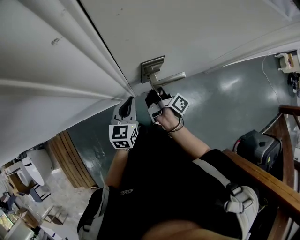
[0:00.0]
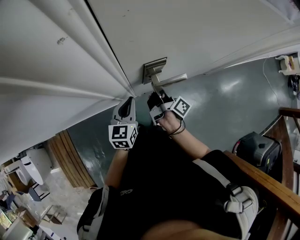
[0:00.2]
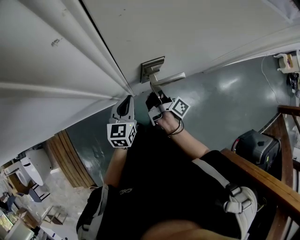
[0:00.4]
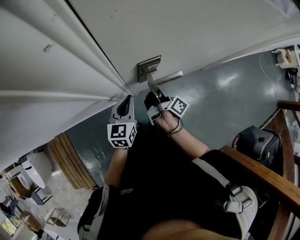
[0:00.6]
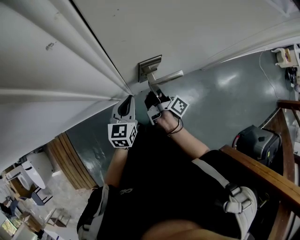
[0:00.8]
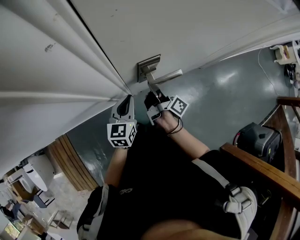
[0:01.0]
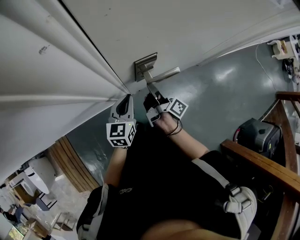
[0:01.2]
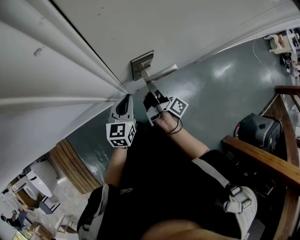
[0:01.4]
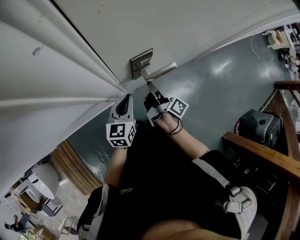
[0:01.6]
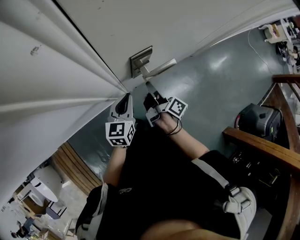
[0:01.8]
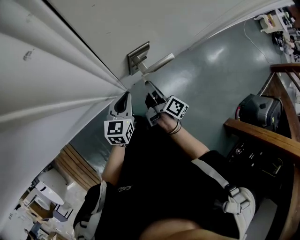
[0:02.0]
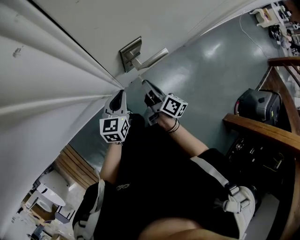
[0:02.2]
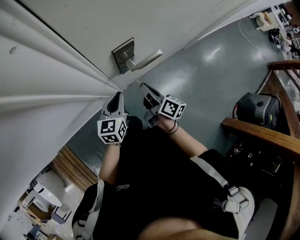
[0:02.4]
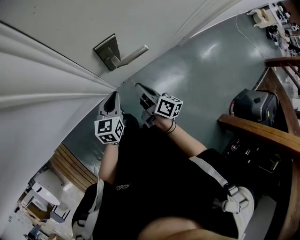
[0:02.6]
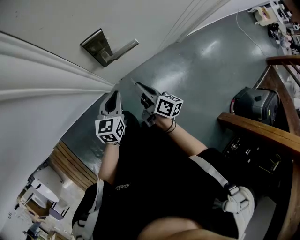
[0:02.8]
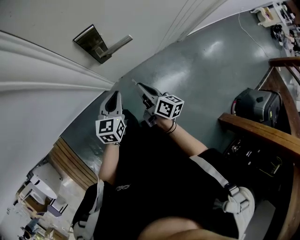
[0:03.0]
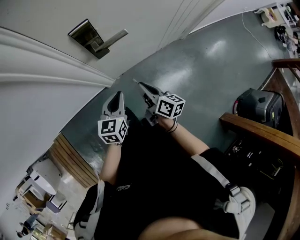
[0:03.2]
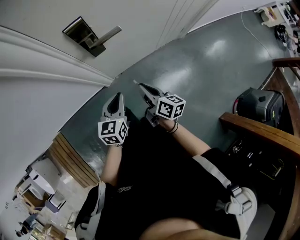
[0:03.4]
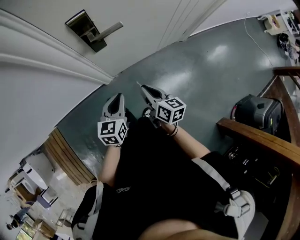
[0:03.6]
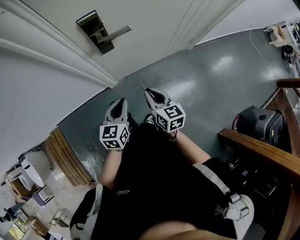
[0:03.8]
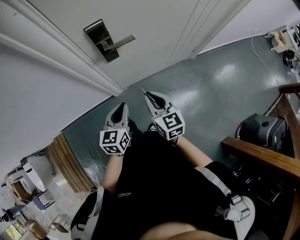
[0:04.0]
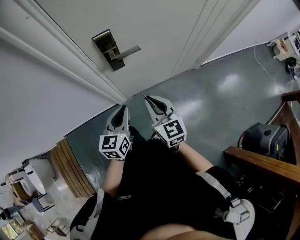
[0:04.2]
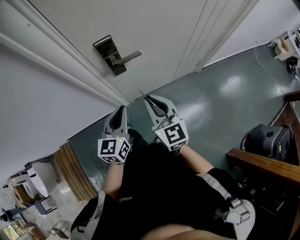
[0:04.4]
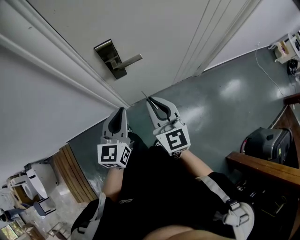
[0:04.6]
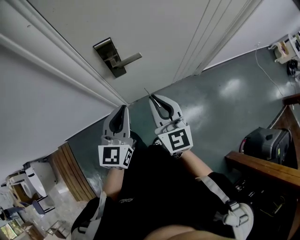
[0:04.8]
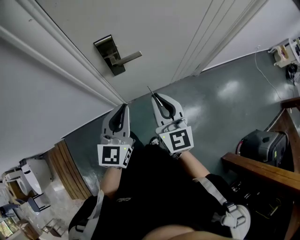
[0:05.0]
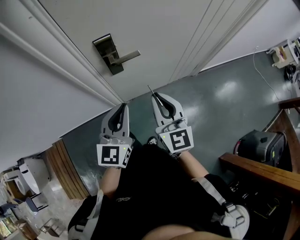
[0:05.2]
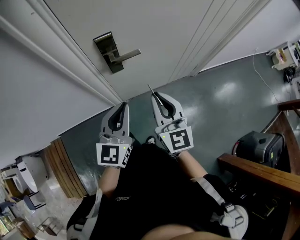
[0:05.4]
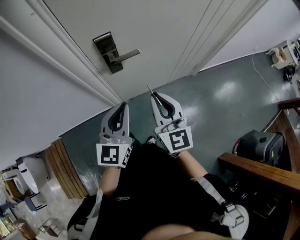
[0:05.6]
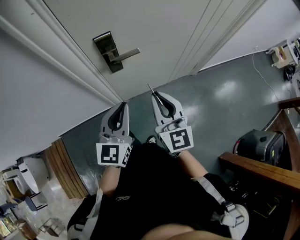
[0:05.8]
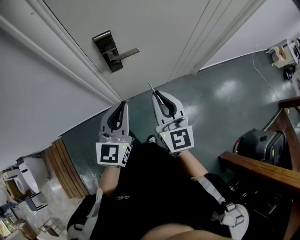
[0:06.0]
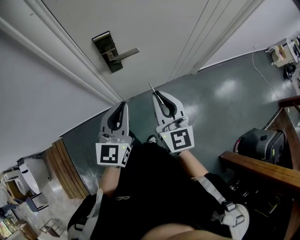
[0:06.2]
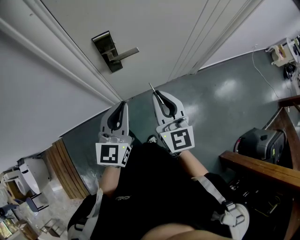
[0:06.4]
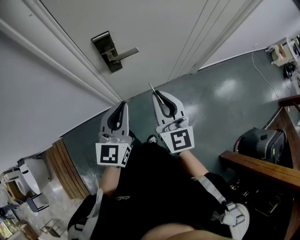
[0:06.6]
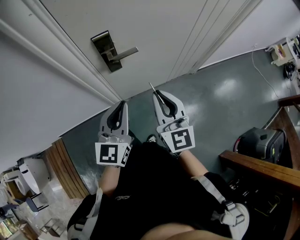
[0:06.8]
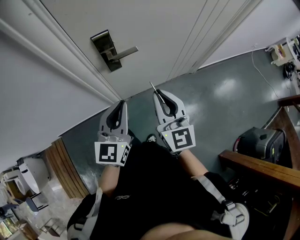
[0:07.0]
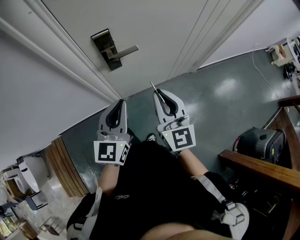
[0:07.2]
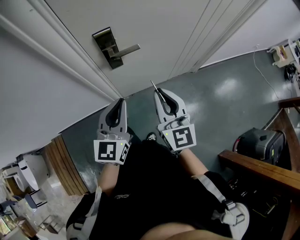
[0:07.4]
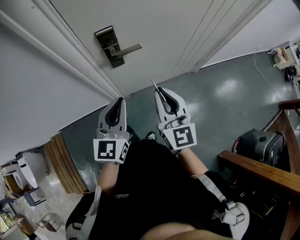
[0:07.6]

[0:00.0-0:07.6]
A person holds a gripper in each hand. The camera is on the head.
0.0 to 1.6 s: The grippers move only a little.
1.6 to 3.0 s: The grippers both shift backward and to the right by roughly 15 cm. The right gripper swivels approximately 30 degrees.
3.0 to 4.6 s: The left gripper goes about 15 cm upward and backward, and rotates roughly 20 degrees; the right gripper moves upward, roughly 15 cm, and rotates around the line of its fingers by approximately 60 degrees, counterclockwise from behind.
4.6 to 6.0 s: The grippers move only a little.
6.0 to 7.6 s: Both grippers stay put.

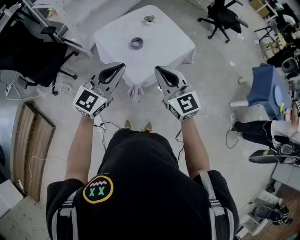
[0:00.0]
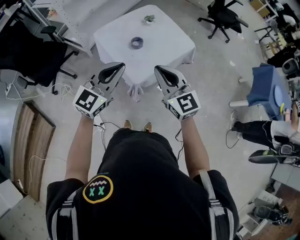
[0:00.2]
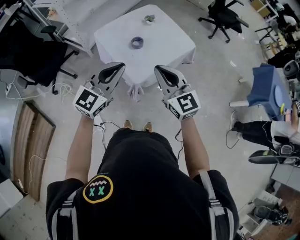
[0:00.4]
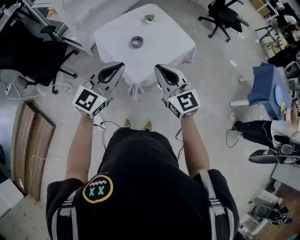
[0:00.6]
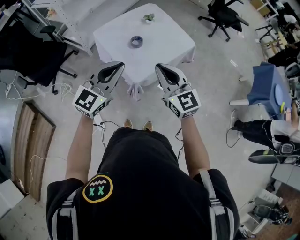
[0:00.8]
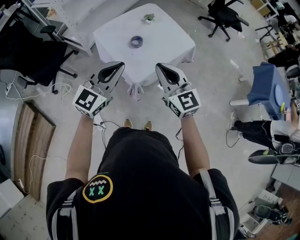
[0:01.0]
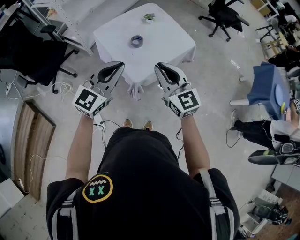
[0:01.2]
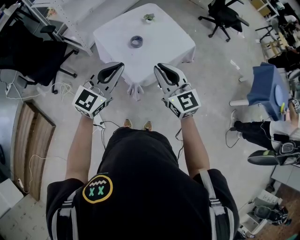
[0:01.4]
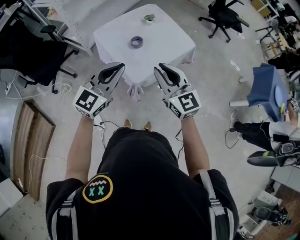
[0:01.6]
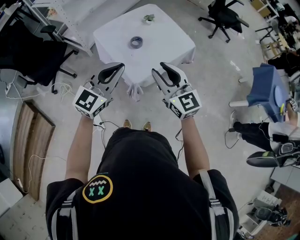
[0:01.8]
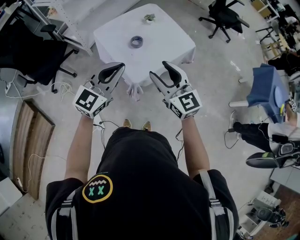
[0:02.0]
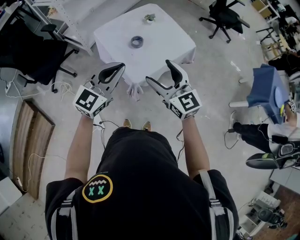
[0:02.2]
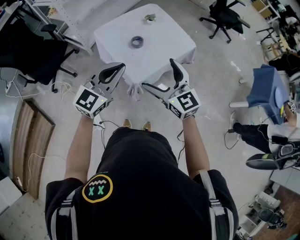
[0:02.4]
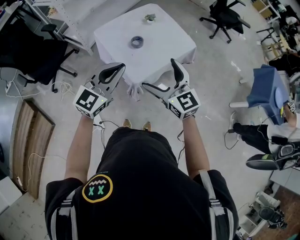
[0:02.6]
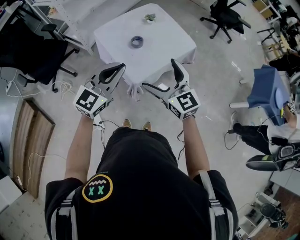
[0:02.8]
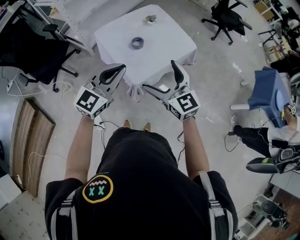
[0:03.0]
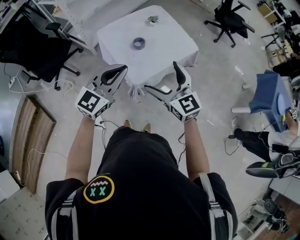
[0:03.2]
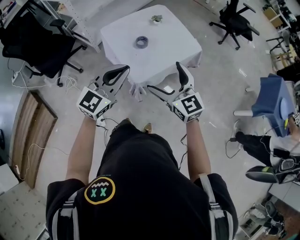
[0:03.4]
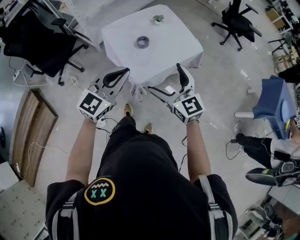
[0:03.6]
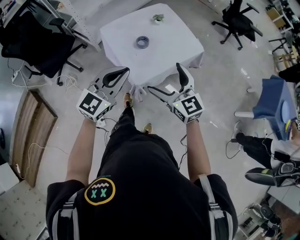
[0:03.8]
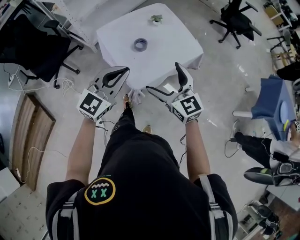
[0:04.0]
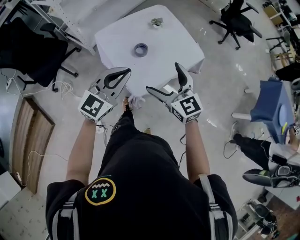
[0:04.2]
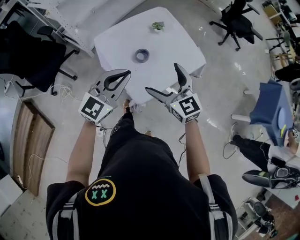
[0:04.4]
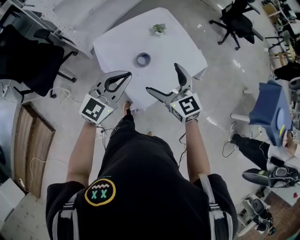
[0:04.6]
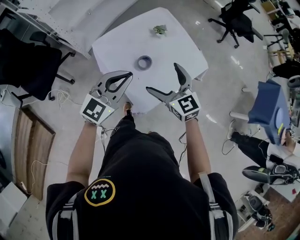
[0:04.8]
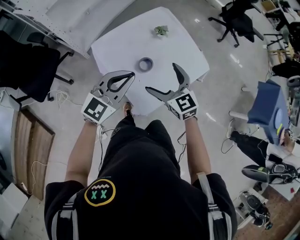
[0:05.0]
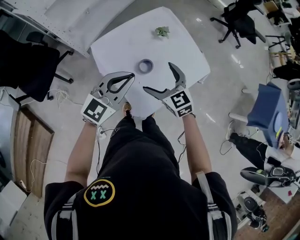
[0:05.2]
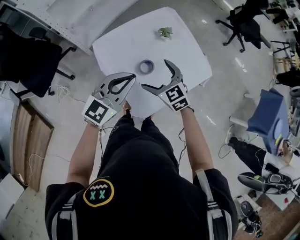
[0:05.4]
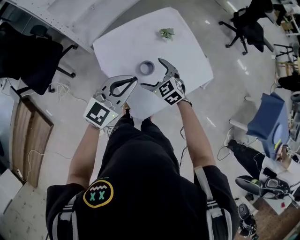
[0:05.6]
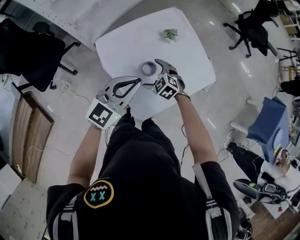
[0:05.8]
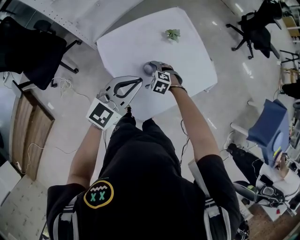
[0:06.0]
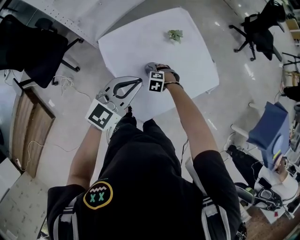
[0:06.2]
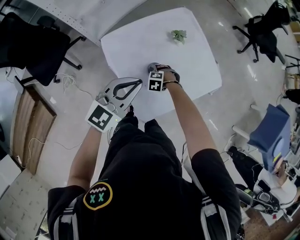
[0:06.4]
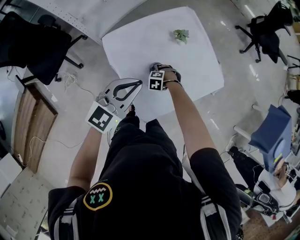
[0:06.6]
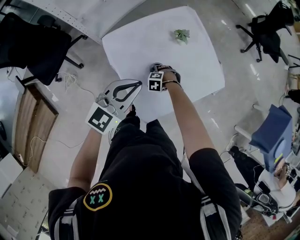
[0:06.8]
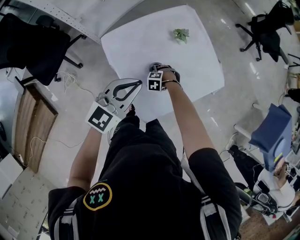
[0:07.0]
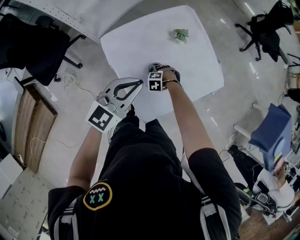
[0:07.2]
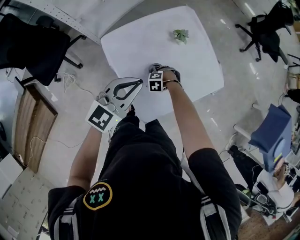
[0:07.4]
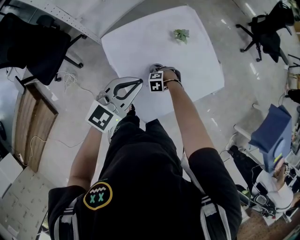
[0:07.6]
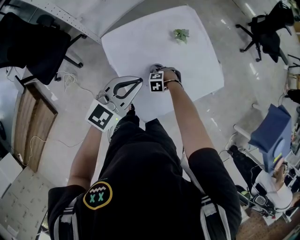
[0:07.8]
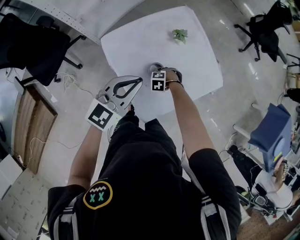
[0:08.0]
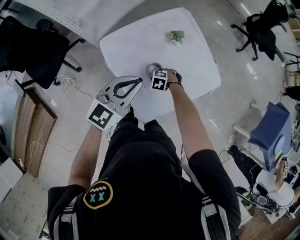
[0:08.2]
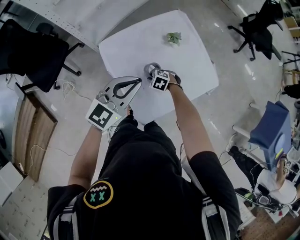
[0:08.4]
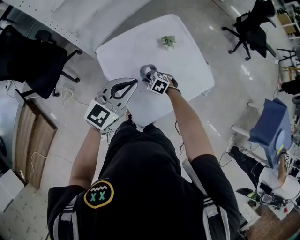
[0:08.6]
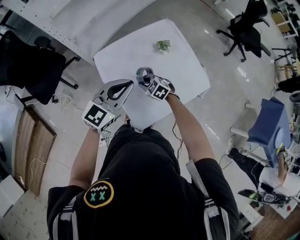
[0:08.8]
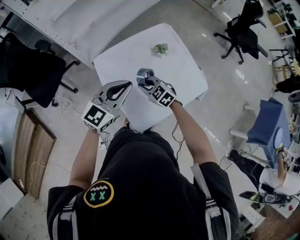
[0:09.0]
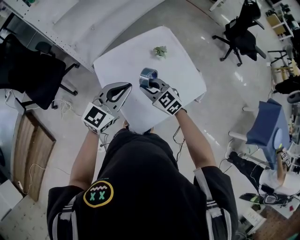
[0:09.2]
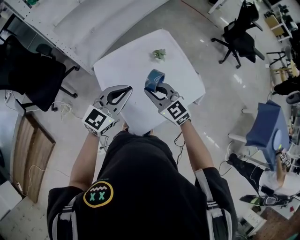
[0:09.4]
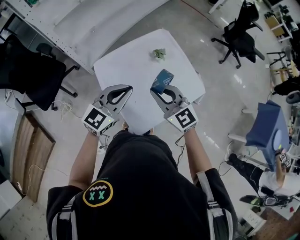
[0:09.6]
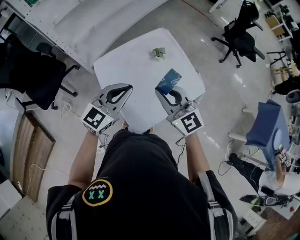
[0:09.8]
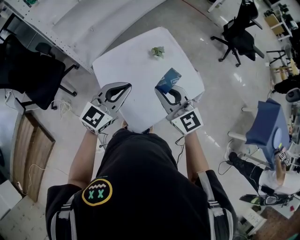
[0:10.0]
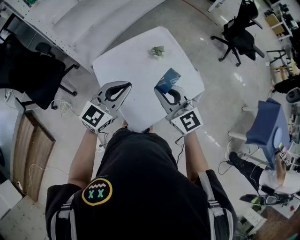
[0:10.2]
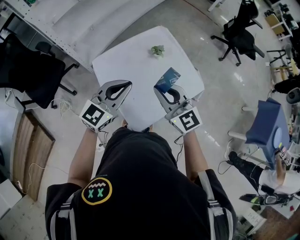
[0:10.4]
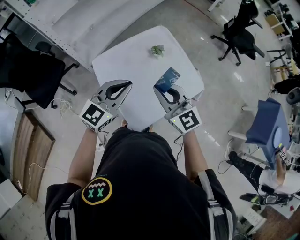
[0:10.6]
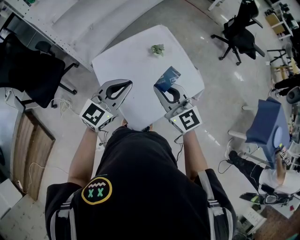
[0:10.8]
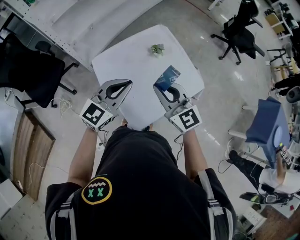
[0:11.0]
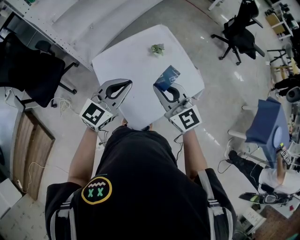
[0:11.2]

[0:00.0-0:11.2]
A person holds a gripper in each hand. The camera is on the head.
0.0 to 1.6 s: Neither gripper changes place.
1.6 to 3.2 s: The right gripper opens.
3.2 to 4.8 s: The grippers both shift forward by some 25 cm.
4.8 to 6.4 s: The right gripper is displaced downward by roughly 35 cm, and angles its fingers downward, by approximately 60 degrees; the left gripper changes place by roughly 10 cm.
6.4 to 8.0 s: The right gripper closes up.
8.0 to 9.6 s: The right gripper heads upward, covering some 40 cm, and tilts its fingers roughly 70 degrees upward.
9.6 to 11.2 s: The grippers stay close to where they were, moving slightly.

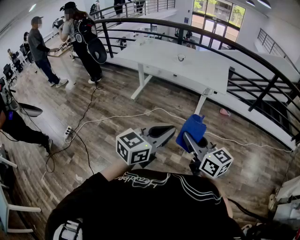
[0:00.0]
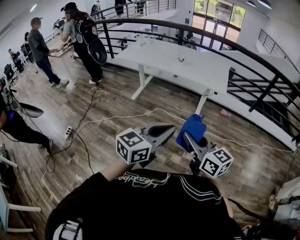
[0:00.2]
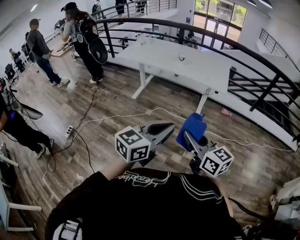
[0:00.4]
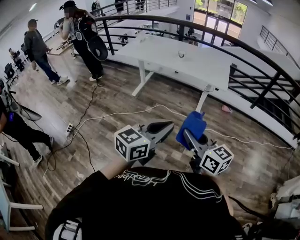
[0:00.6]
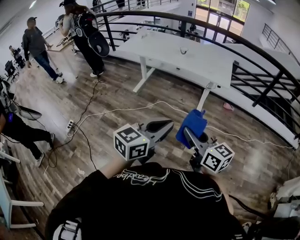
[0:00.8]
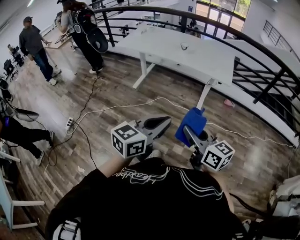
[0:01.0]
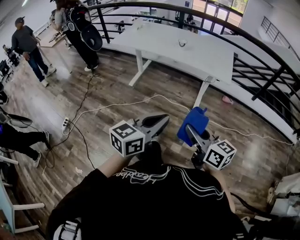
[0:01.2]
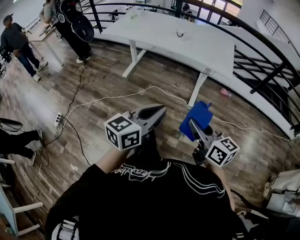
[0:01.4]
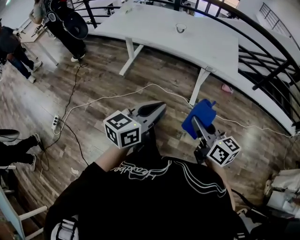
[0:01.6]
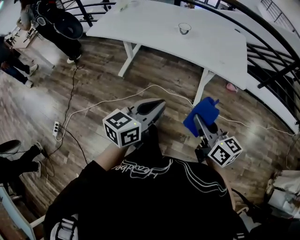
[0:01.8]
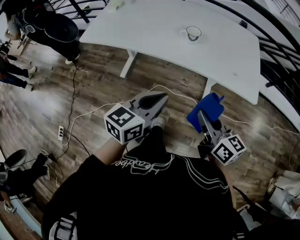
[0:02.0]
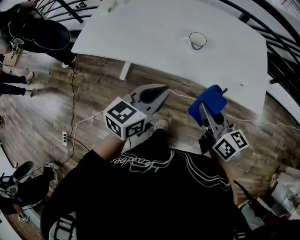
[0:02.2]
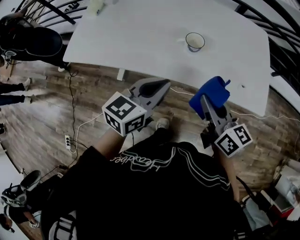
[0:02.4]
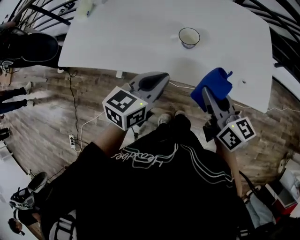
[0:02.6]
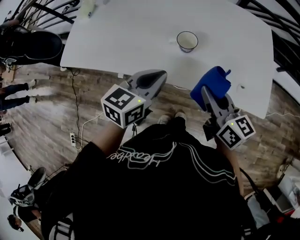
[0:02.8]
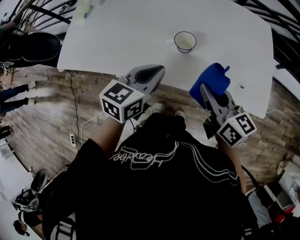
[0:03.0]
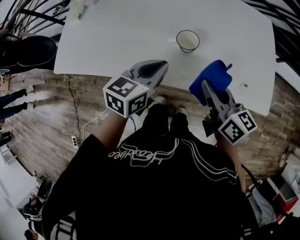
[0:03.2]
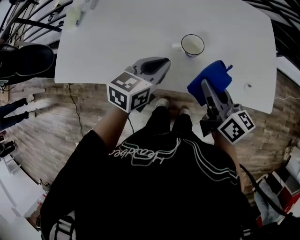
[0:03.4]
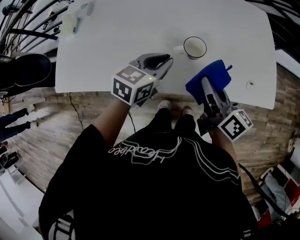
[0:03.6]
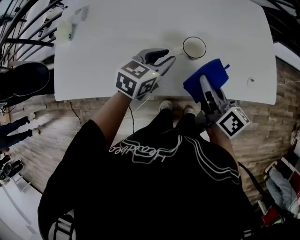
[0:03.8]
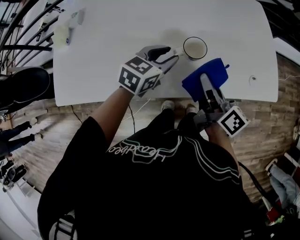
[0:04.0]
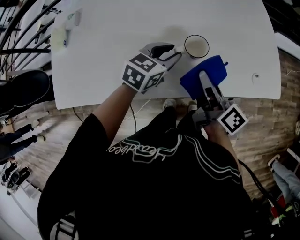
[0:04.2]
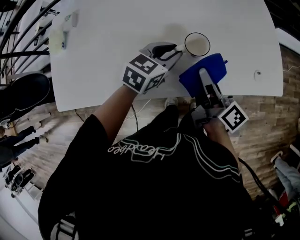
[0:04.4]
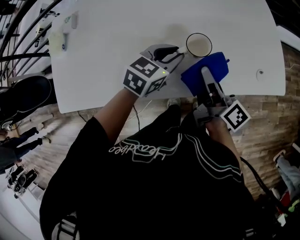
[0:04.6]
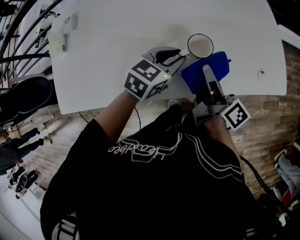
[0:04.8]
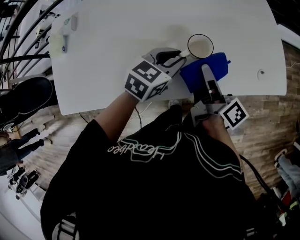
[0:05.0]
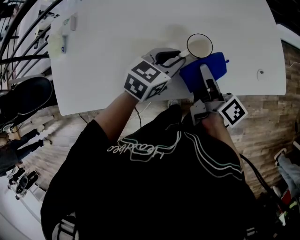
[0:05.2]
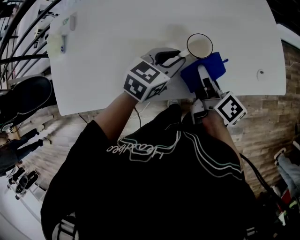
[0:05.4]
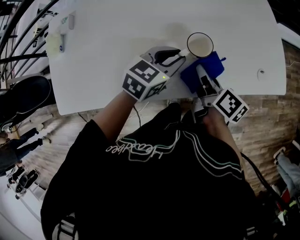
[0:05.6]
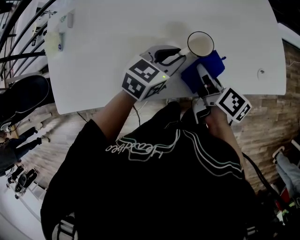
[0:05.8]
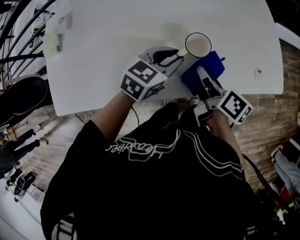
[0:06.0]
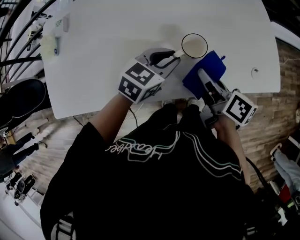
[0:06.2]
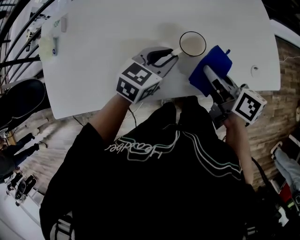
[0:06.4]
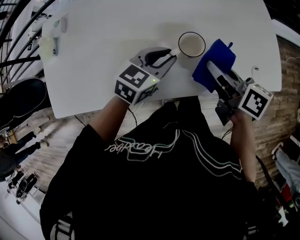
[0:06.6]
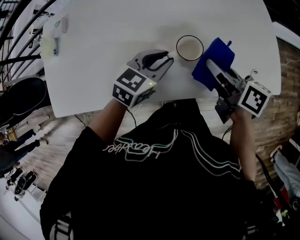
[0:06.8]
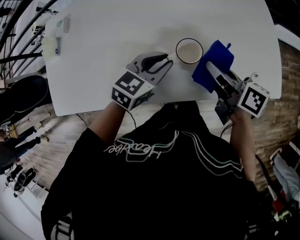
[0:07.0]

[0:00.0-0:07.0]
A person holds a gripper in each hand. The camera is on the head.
0.0 to 1.4 s: Both grippers travel together forward and downward, approximately 15 cm.
1.4 to 2.8 s: The pair of grippers is taken forward, approximately 60 cm. The left gripper swivels some 20 degrees.
2.8 to 4.2 s: The right gripper moves forward, downward and to the left, approximately 15 cm, and rotates some 40 degrees. The left gripper shifts some 20 cm forward and downward, turns by approximately 30 degrees, and opens up.
4.2 to 5.6 s: The right gripper travels downward by approximately 5 cm.
5.6 to 7.0 s: The right gripper travels upward by some 5 cm, and turns by some 30 degrees.
